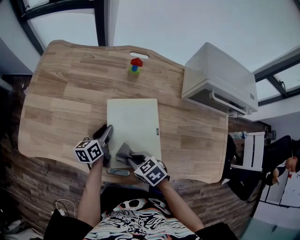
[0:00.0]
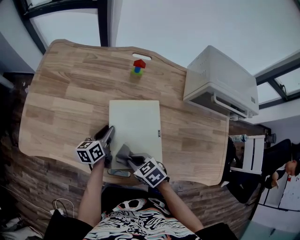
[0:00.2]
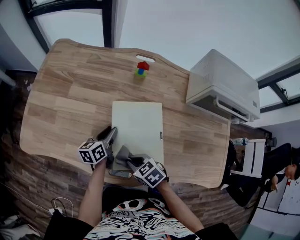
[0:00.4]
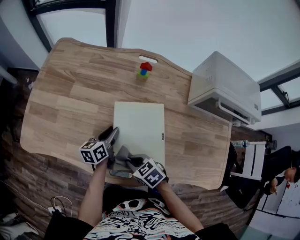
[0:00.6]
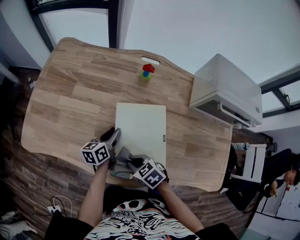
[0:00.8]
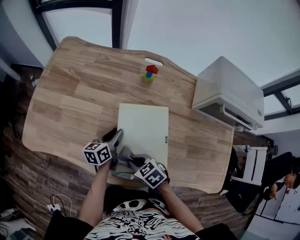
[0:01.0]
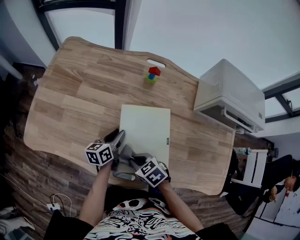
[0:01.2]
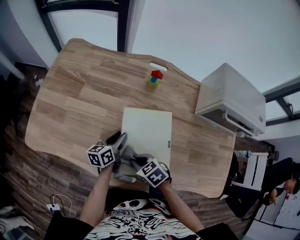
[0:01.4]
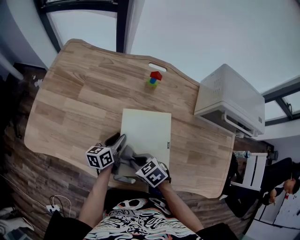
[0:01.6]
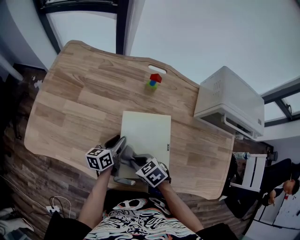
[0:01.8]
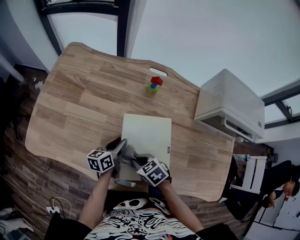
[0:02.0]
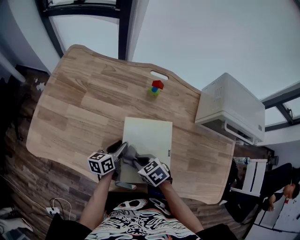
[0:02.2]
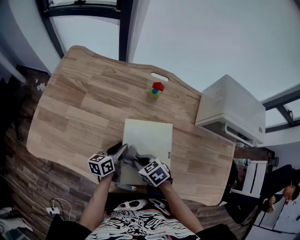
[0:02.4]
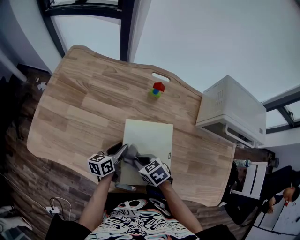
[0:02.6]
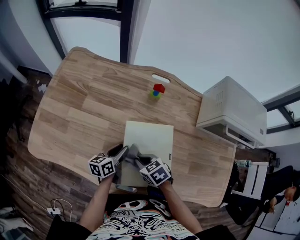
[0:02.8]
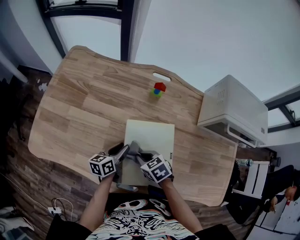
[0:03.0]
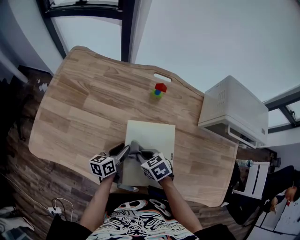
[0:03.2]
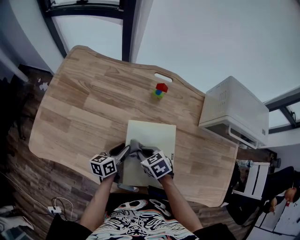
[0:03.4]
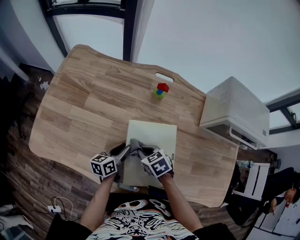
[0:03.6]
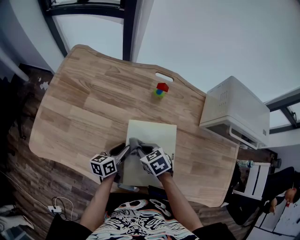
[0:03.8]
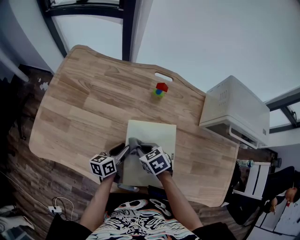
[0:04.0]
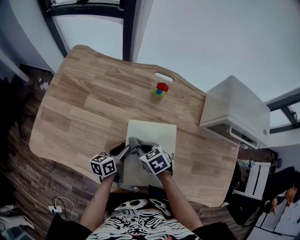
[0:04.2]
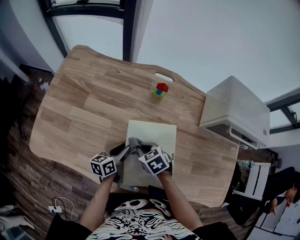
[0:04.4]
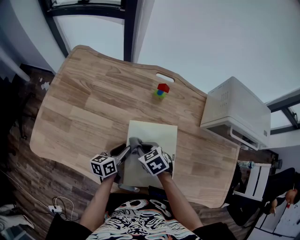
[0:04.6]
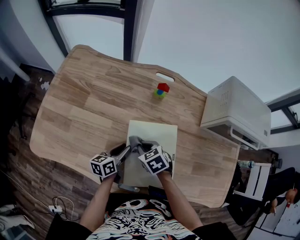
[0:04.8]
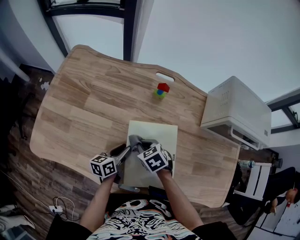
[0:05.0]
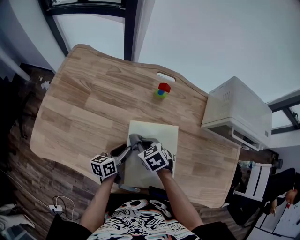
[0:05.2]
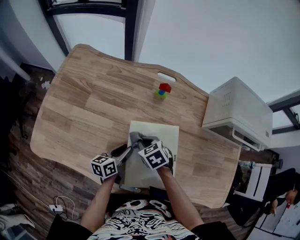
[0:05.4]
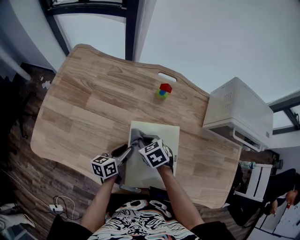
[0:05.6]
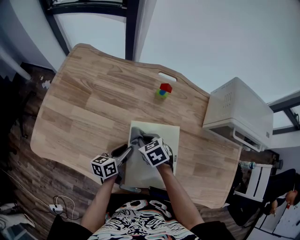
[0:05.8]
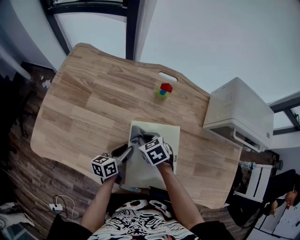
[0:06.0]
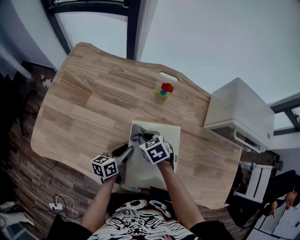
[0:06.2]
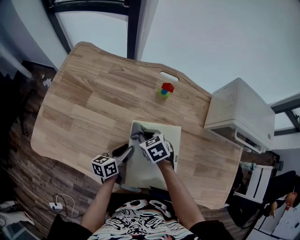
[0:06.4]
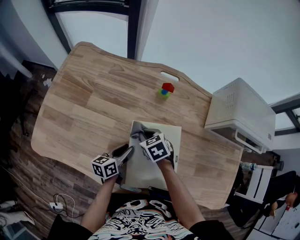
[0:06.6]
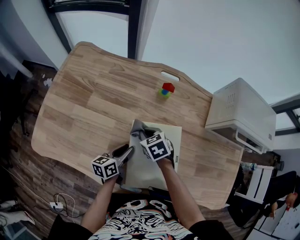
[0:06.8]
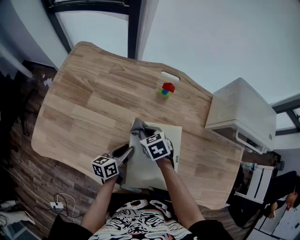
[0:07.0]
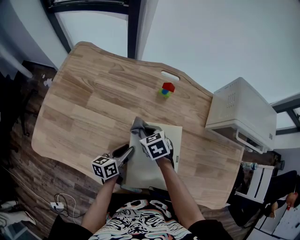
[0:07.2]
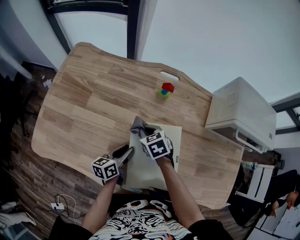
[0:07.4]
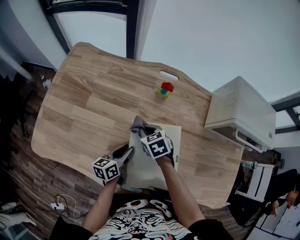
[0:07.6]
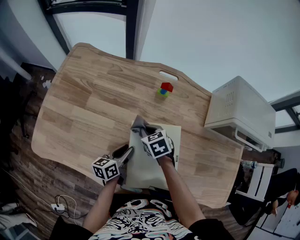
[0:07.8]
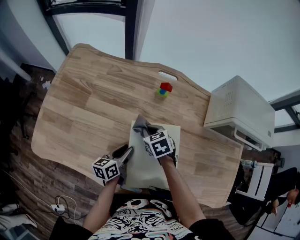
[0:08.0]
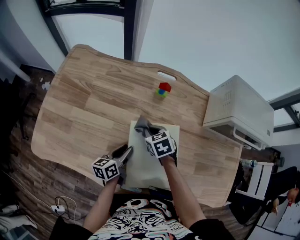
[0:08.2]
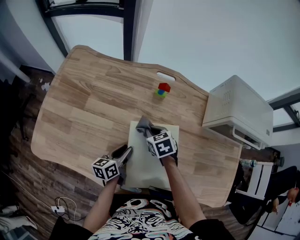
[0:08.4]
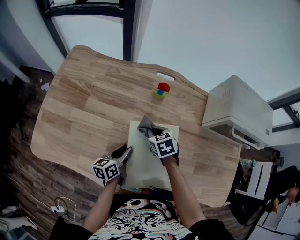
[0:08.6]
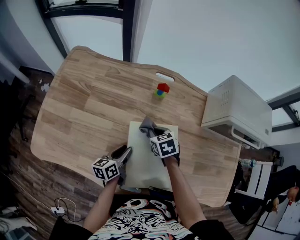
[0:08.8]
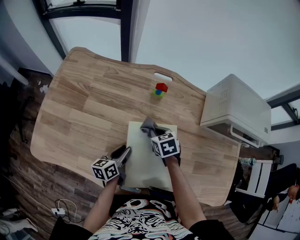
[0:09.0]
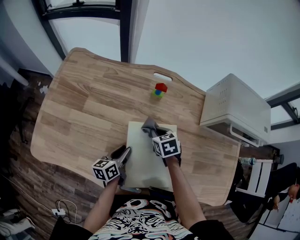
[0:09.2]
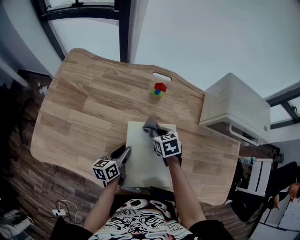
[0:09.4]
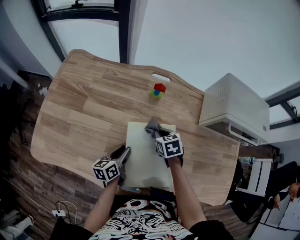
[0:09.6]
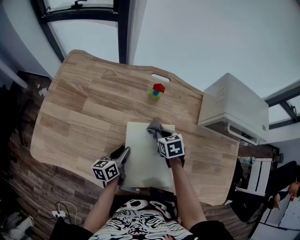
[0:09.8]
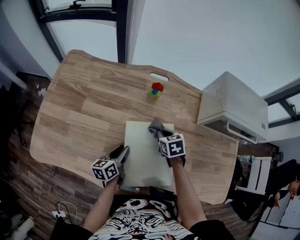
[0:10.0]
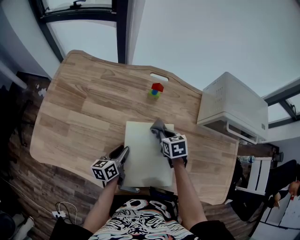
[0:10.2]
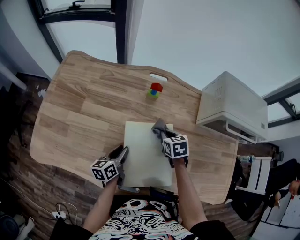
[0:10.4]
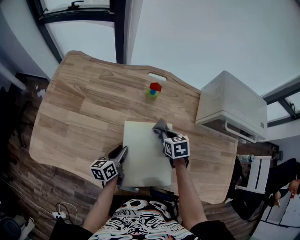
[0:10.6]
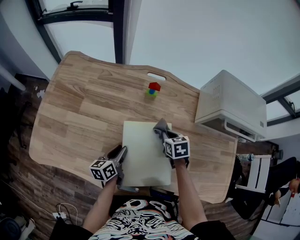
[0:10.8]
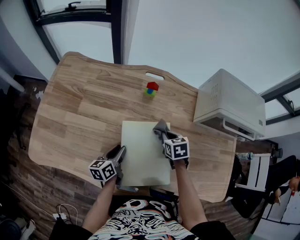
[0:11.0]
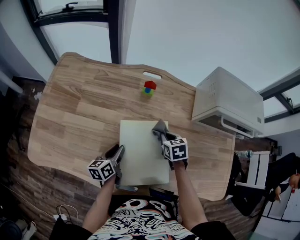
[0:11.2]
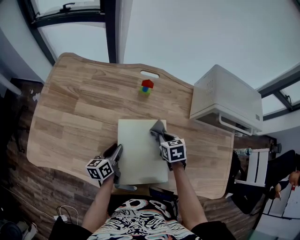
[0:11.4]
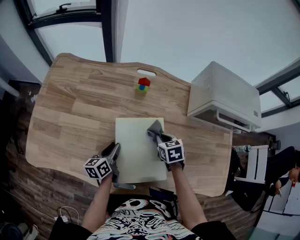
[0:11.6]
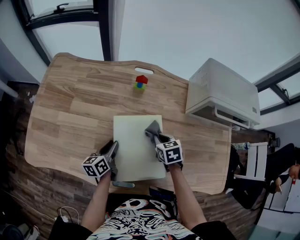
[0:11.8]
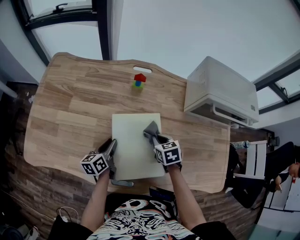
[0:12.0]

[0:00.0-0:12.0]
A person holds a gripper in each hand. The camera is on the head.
0:00.0 to 0:01.6: There are only small adjustments of the grippers.
0:01.6 to 0:03.0: The right gripper is displaced forward by some 5 cm.
0:03.0 to 0:04.4: There are only small adjustments of the grippers.
0:04.4 to 0:06.0: The right gripper travels forward by roughly 5 cm.
0:06.0 to 0:07.6: The grippers move only a little.
0:07.6 to 0:09.0: The right gripper is displaced to the right by approximately 5 cm.
0:09.0 to 0:10.4: The right gripper travels to the right by about 10 cm.
0:10.4 to 0:12.0: The right gripper moves backward, roughly 5 cm.

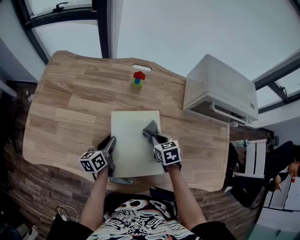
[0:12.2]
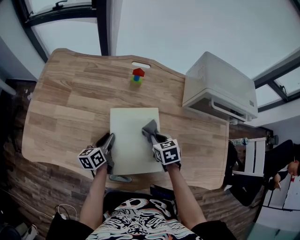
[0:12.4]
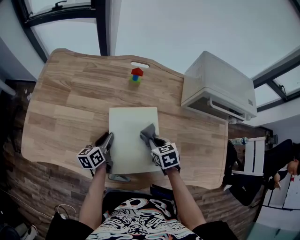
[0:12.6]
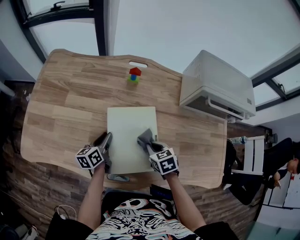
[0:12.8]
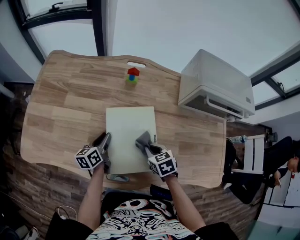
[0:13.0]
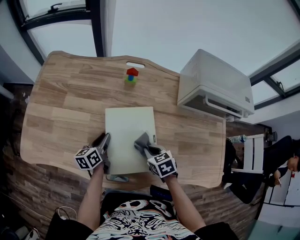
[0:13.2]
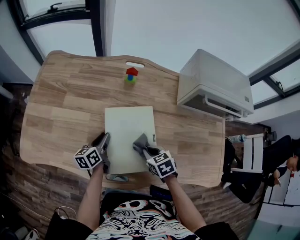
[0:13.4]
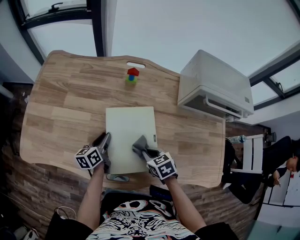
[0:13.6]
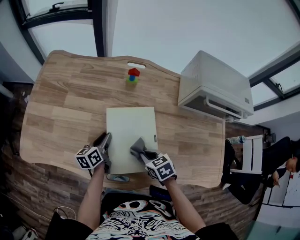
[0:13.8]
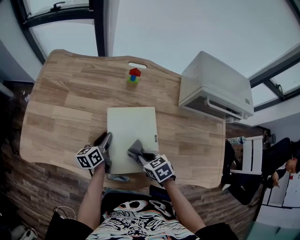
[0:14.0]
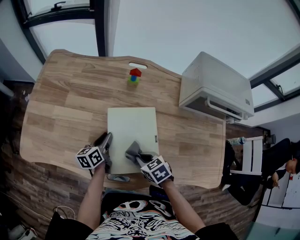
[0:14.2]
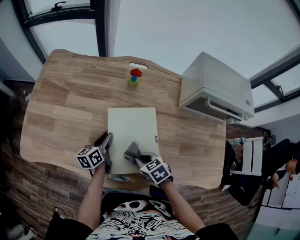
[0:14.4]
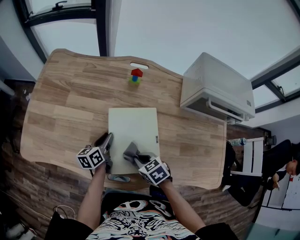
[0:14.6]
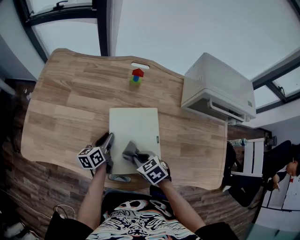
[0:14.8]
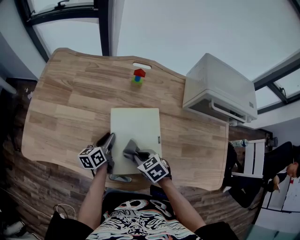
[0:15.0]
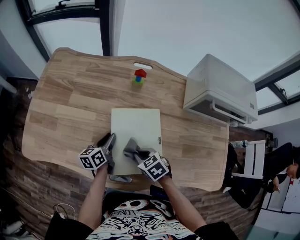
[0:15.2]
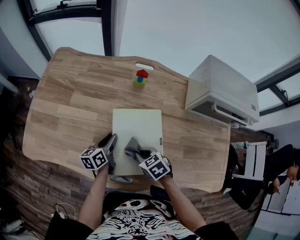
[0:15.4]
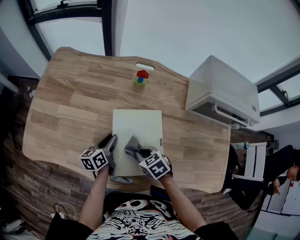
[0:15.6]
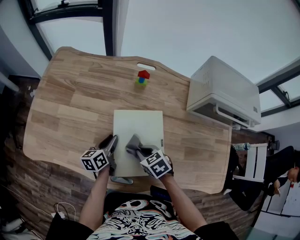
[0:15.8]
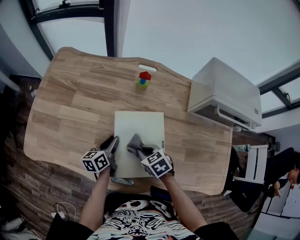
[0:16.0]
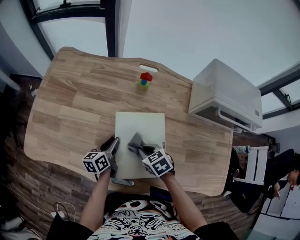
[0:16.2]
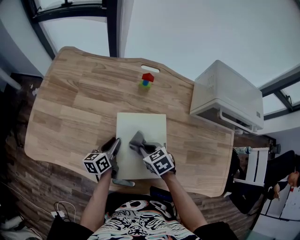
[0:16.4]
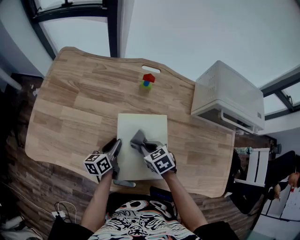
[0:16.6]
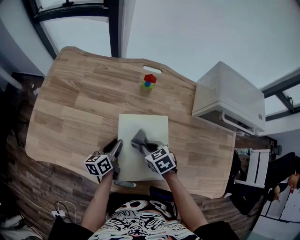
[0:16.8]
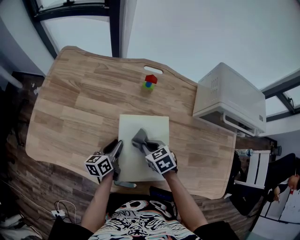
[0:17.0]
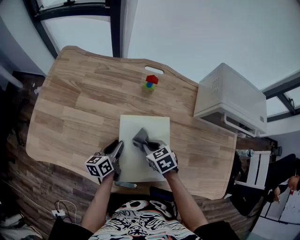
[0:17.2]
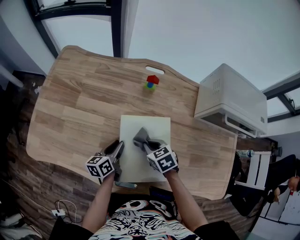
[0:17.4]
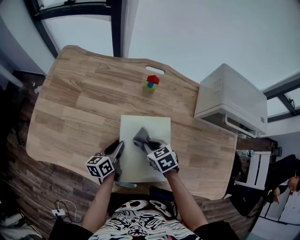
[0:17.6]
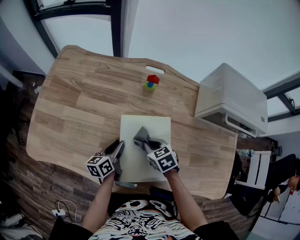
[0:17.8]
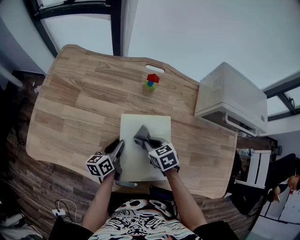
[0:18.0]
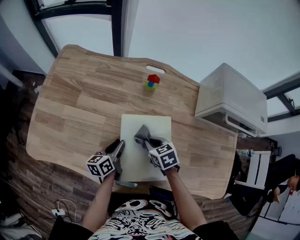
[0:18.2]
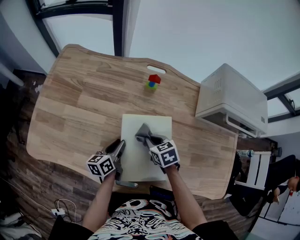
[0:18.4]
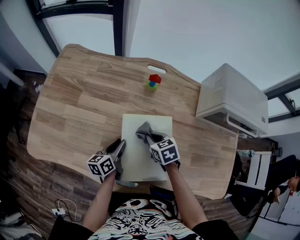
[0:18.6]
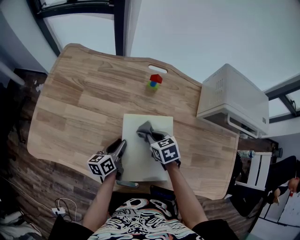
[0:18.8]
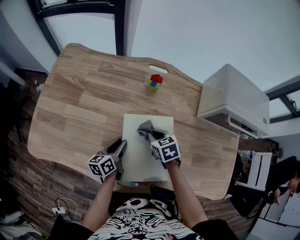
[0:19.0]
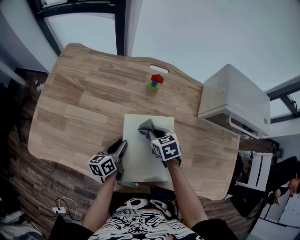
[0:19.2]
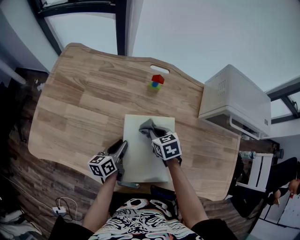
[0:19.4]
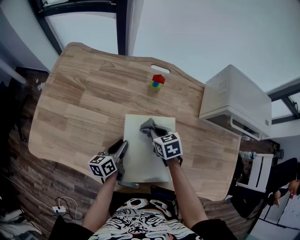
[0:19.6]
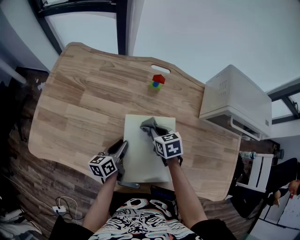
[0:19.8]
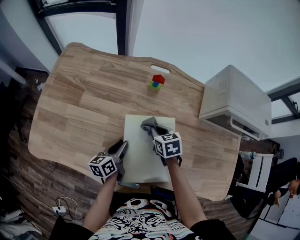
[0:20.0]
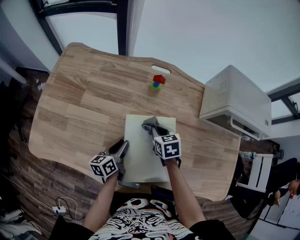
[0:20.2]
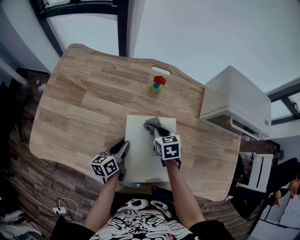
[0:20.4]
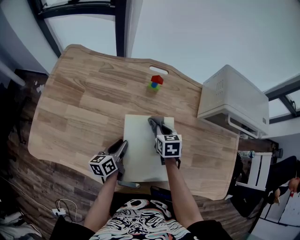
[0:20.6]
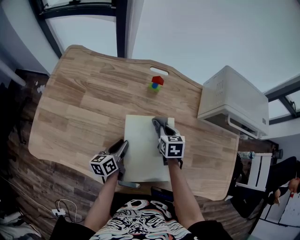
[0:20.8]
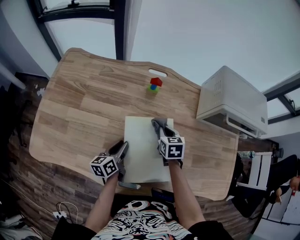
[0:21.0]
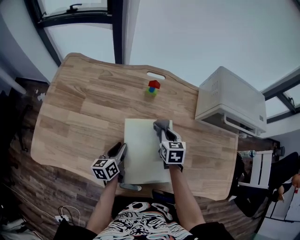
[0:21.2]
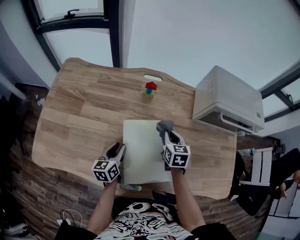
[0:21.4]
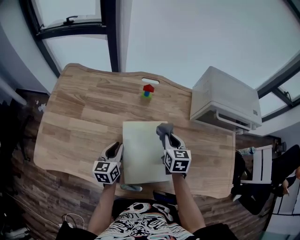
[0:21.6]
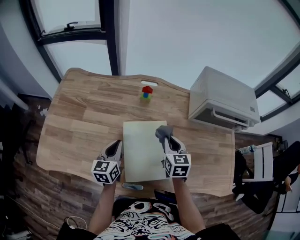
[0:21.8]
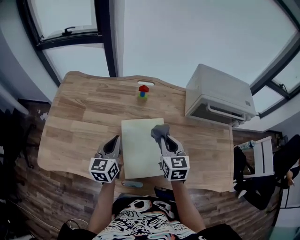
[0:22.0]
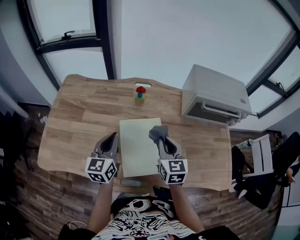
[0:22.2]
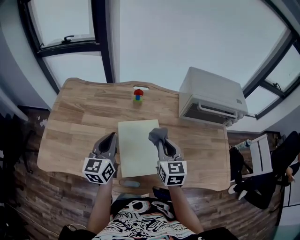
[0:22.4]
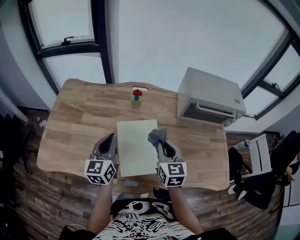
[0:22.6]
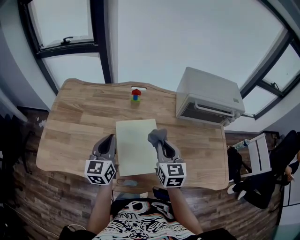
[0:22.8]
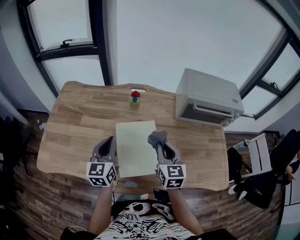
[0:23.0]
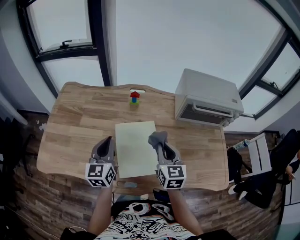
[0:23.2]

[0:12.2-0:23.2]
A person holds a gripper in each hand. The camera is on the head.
0:12.2 to 0:13.8: The right gripper travels backward by about 10 cm.
0:13.8 to 0:15.4: The right gripper shifts by roughly 5 cm.
0:15.4 to 0:17.0: The right gripper moves forward, about 5 cm.
0:17.0 to 0:18.4: The grippers stay close to where they were, moving slightly.
0:18.4 to 0:20.0: The right gripper goes some 5 cm forward.
0:20.0 to 0:21.6: The right gripper travels to the right and upward by about 10 cm, and turns by roughly 30 degrees, while the left gripper moves upward, roughly 5 cm, and turns by approximately 30 degrees.
0:21.6 to 0:23.2: The right gripper moves backward and upward, about 15 cm. Meanwhile the left gripper heads upward, covering about 15 cm, and turns by roughly 20 degrees.

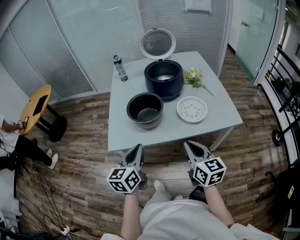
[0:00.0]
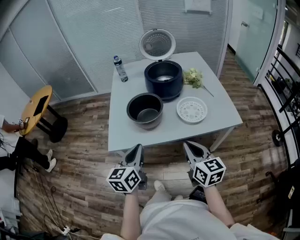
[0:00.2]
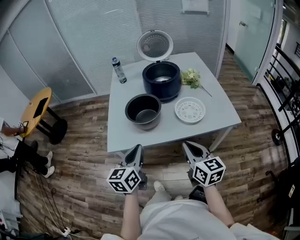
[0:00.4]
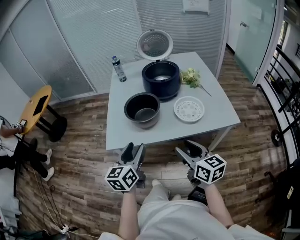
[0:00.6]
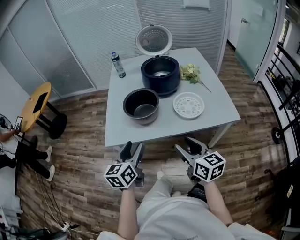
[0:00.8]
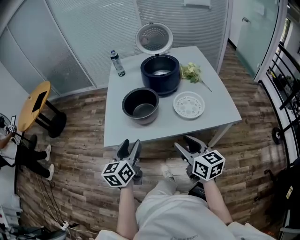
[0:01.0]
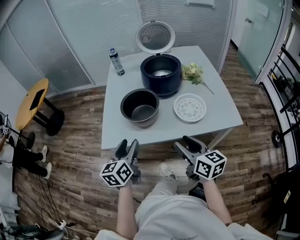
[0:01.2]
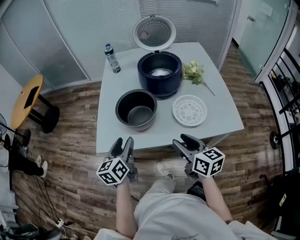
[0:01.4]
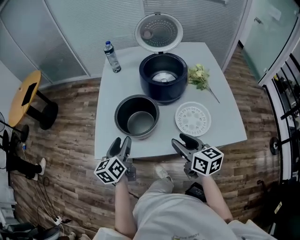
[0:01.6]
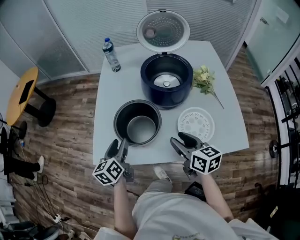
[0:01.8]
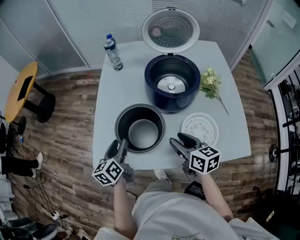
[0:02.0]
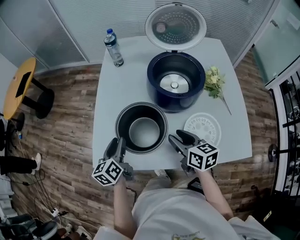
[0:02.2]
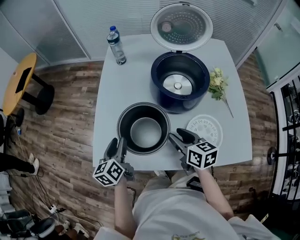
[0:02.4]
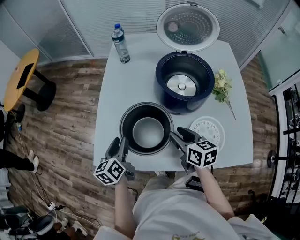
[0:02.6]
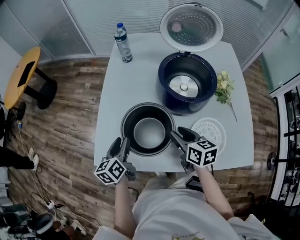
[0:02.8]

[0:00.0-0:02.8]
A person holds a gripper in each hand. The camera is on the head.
0:00.0 to 0:01.4: The left gripper shifts roughly 10 cm forward and downward, and opens its fingers. Meanwhile the right gripper shifts about 10 cm forward, and opens its fingers.
0:01.4 to 0:02.8: The left gripper moves forward and downward, approximately 20 cm, while the right gripper heads forward, covering about 25 cm.
